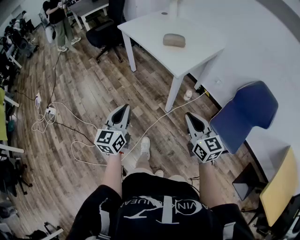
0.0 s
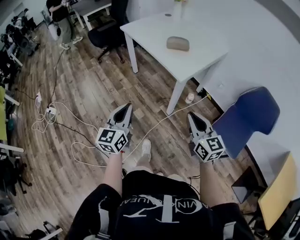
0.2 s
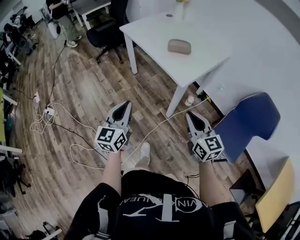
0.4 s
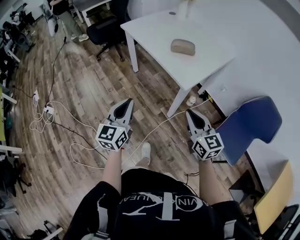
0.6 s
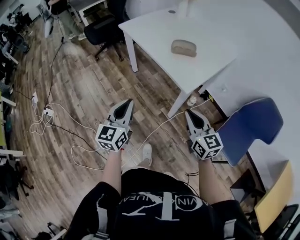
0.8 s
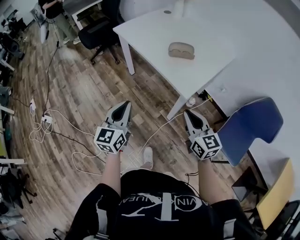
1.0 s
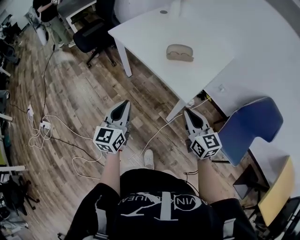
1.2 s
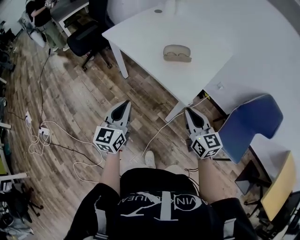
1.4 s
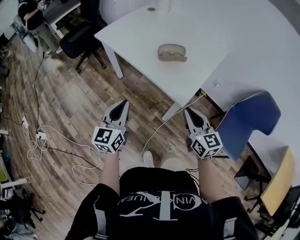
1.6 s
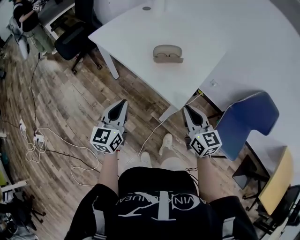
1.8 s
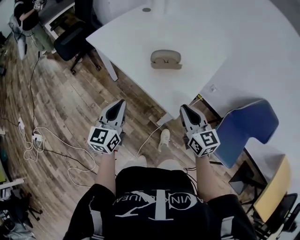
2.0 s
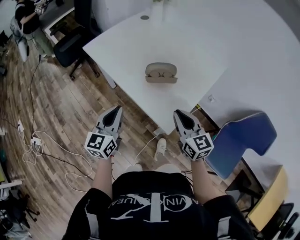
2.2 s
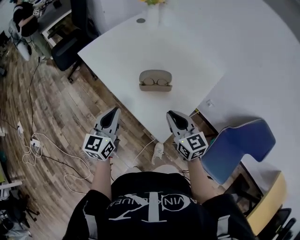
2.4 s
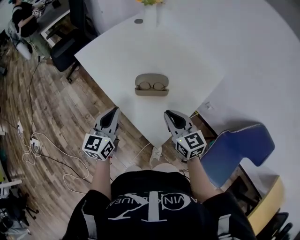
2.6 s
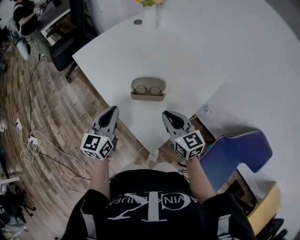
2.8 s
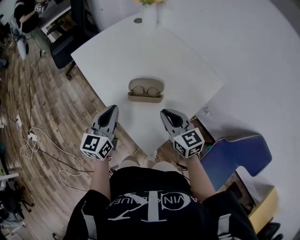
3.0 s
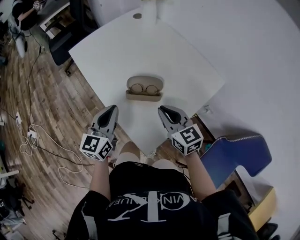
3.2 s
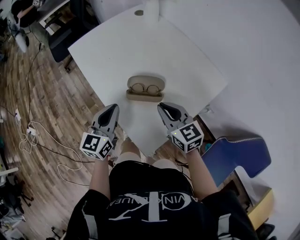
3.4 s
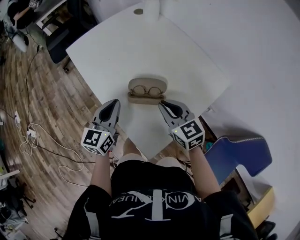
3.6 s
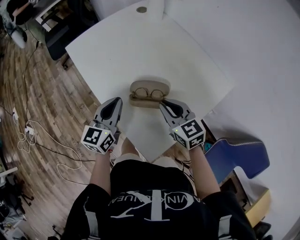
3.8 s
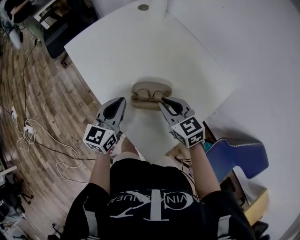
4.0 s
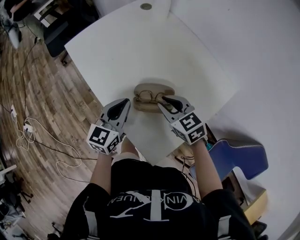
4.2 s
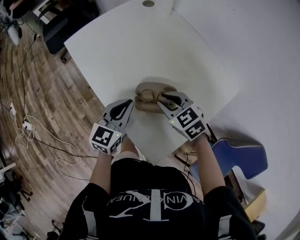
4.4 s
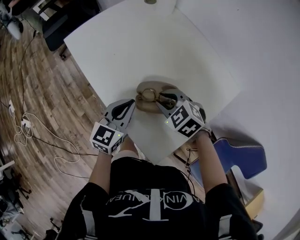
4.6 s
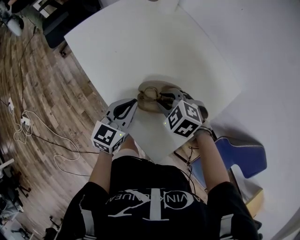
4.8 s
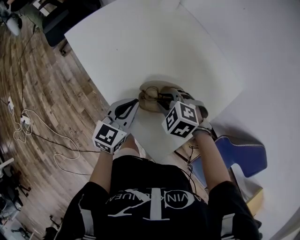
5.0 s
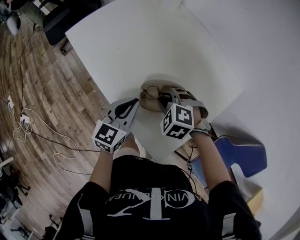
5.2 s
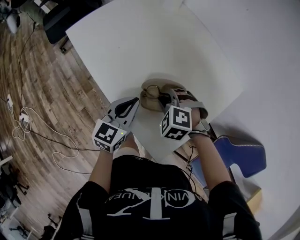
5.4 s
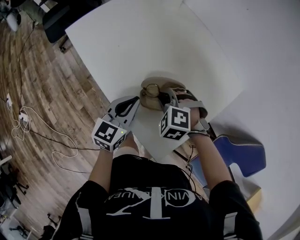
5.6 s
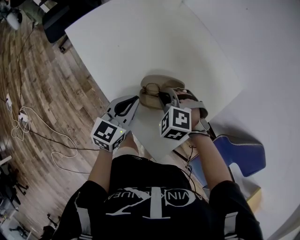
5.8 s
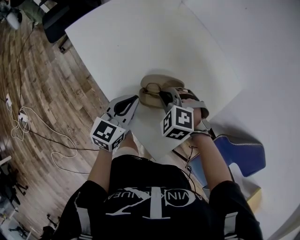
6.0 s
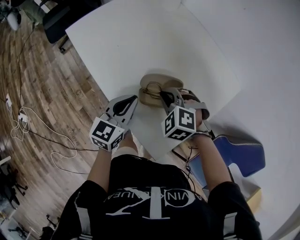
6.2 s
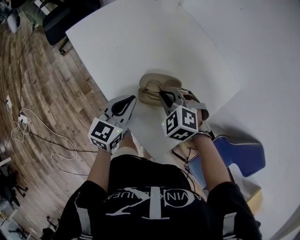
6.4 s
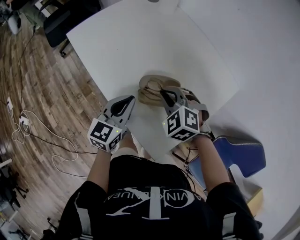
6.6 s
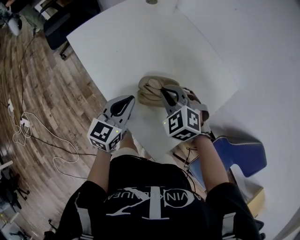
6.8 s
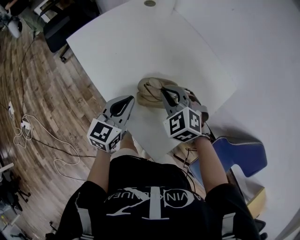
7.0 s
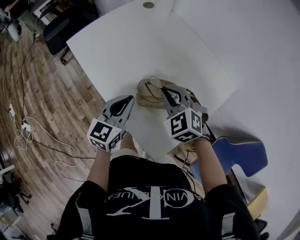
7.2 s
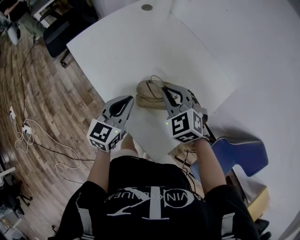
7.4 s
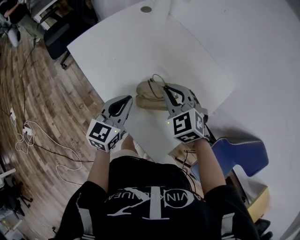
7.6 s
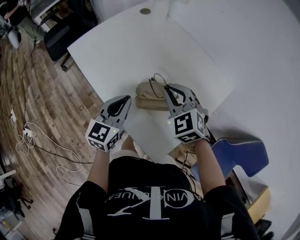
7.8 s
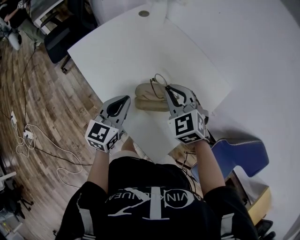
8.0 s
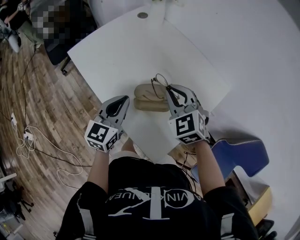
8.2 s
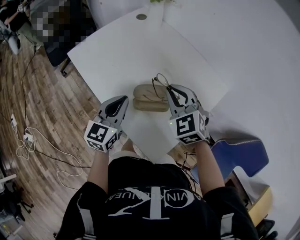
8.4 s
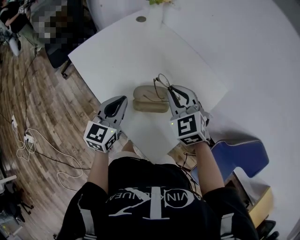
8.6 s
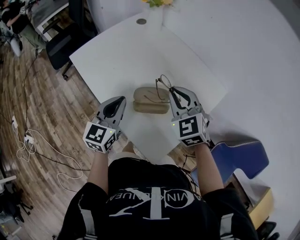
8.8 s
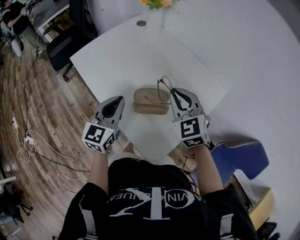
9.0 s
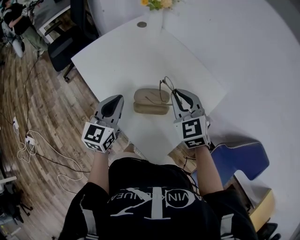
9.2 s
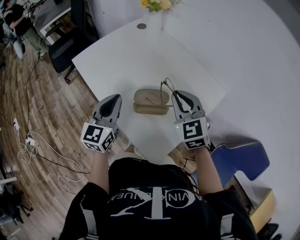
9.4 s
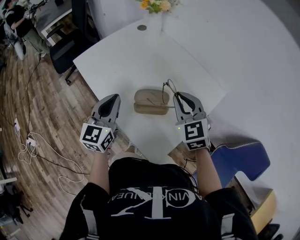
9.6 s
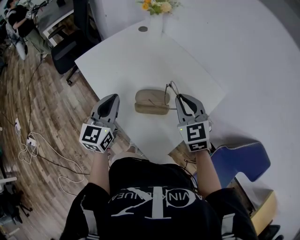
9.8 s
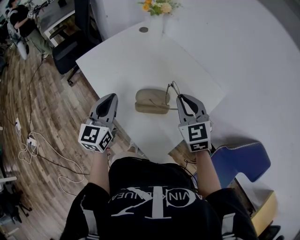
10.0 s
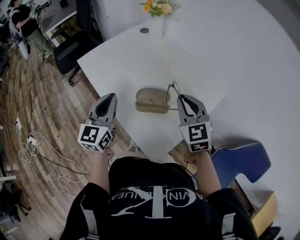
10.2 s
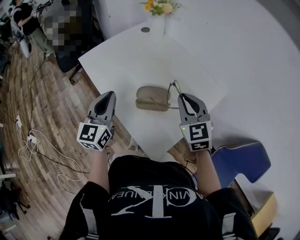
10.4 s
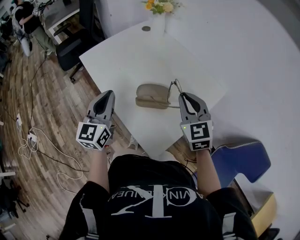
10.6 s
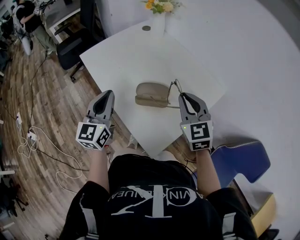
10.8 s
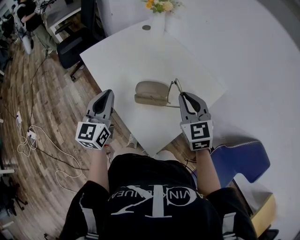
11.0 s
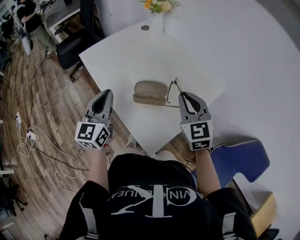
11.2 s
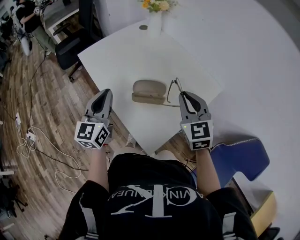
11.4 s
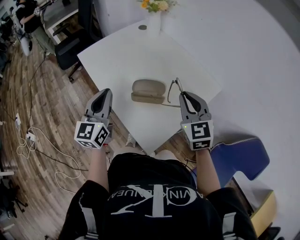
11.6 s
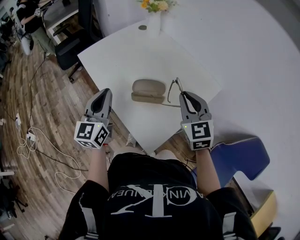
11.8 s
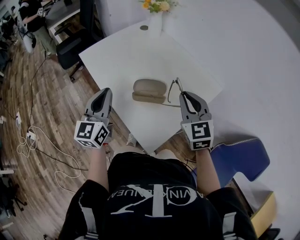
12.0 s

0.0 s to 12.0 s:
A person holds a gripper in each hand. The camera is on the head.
0.0 to 1.6 s: Both grippers travel together forward, roughly 30 cm.
1.6 to 3.0 s: The right gripper travels forward by about 25 cm; the left gripper travels forward and to the right by about 25 cm.
3.0 to 4.4 s: The right gripper travels forward, to the left and downward by approximately 15 cm, and turns by roughly 30 degrees. Meanwhile the left gripper travels forward and downward by roughly 10 cm.
4.4 to 6.0 s: The right gripper swivels approximately 40 degrees.
6.0 to 7.6 s: The right gripper travels upward by about 10 cm, and swivels approximately 30 degrees, while the left gripper goes some 5 cm upward.
7.6 to 9.0 s: The right gripper heads upward, covering approximately 5 cm.
9.0 to 10.4 s: The right gripper shifts by some 5 cm. The left gripper travels upward by some 5 cm.
10.4 to 12.0 s: There are only small adjustments of the grippers.

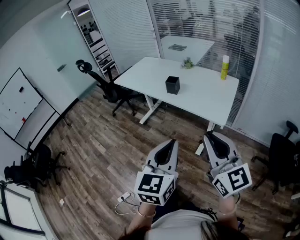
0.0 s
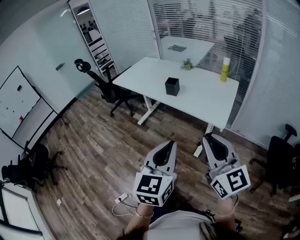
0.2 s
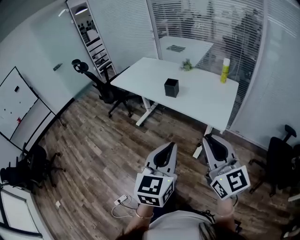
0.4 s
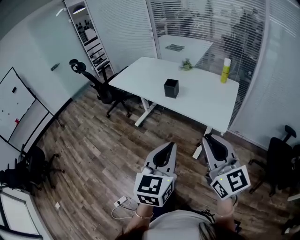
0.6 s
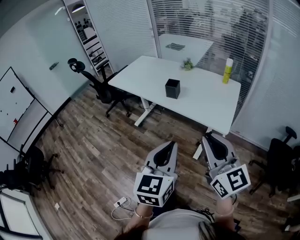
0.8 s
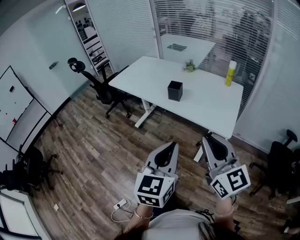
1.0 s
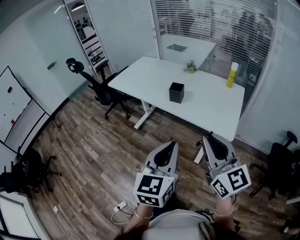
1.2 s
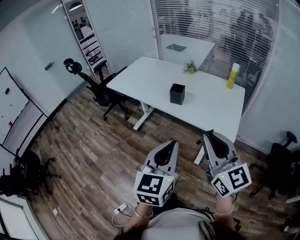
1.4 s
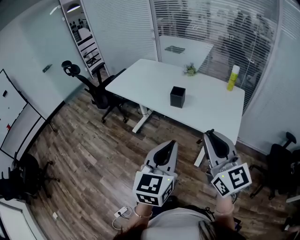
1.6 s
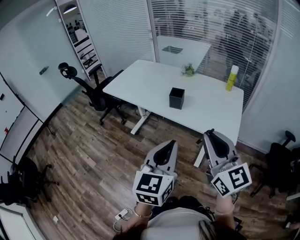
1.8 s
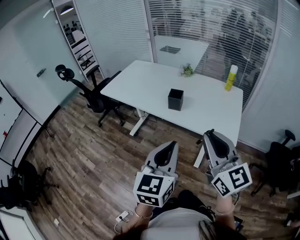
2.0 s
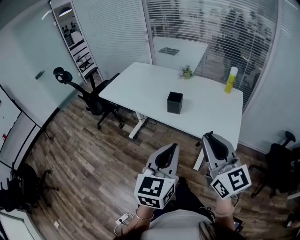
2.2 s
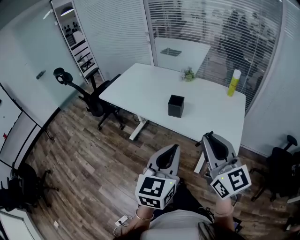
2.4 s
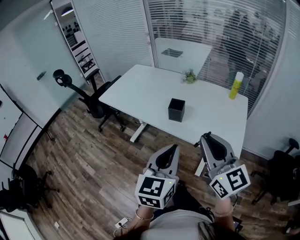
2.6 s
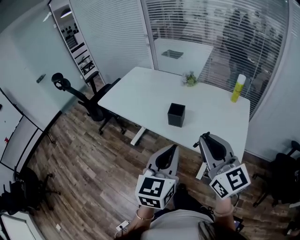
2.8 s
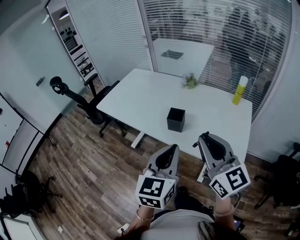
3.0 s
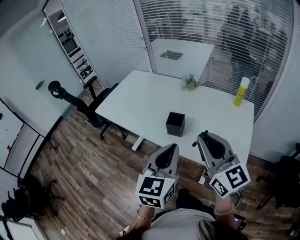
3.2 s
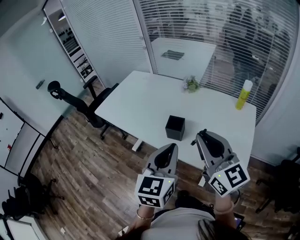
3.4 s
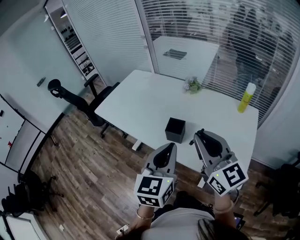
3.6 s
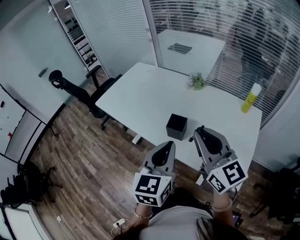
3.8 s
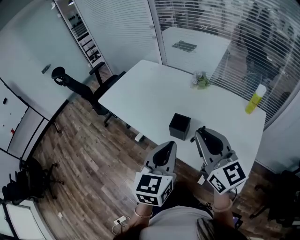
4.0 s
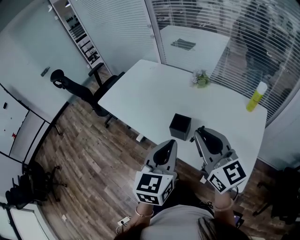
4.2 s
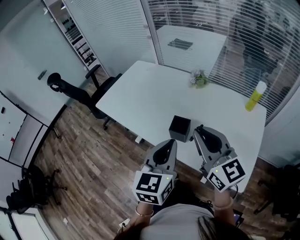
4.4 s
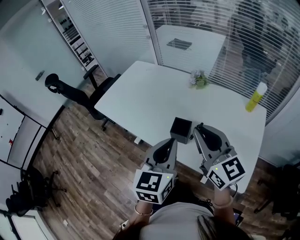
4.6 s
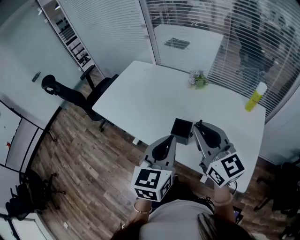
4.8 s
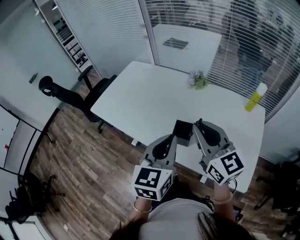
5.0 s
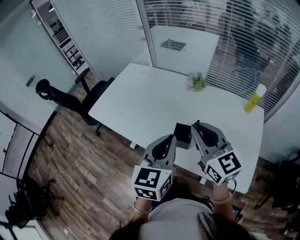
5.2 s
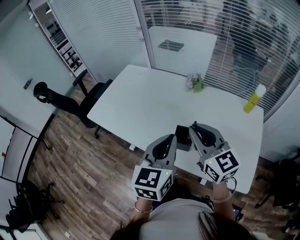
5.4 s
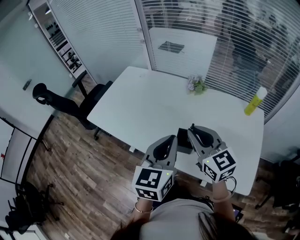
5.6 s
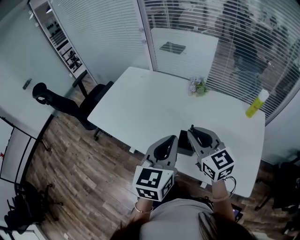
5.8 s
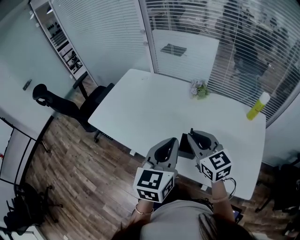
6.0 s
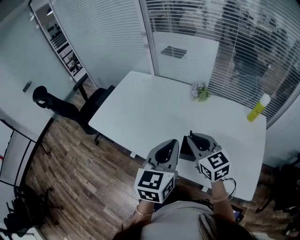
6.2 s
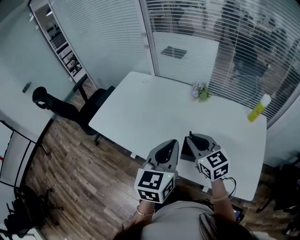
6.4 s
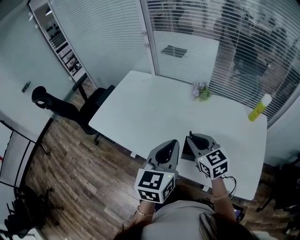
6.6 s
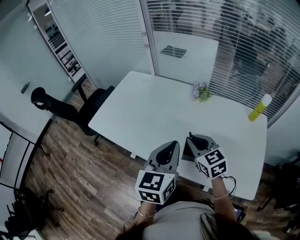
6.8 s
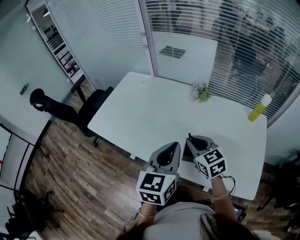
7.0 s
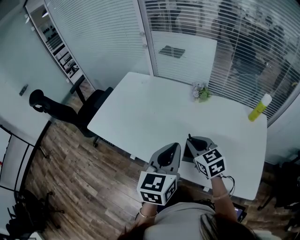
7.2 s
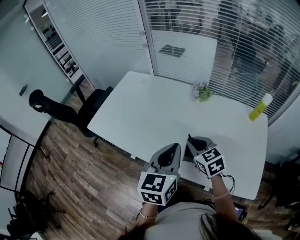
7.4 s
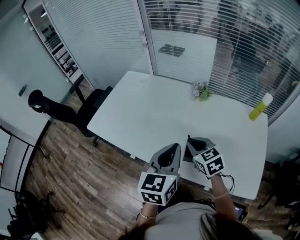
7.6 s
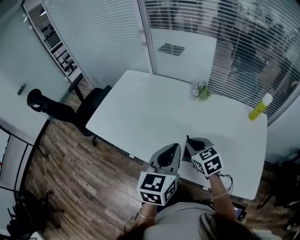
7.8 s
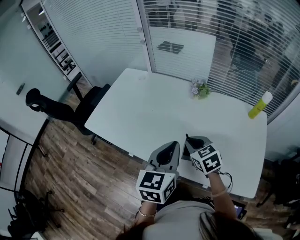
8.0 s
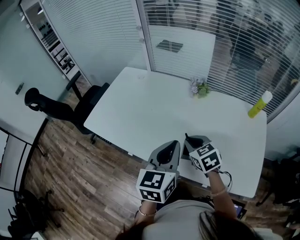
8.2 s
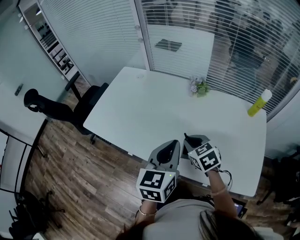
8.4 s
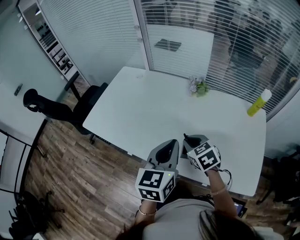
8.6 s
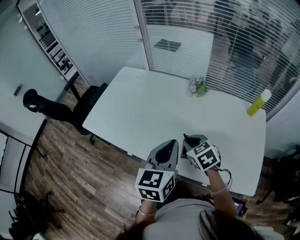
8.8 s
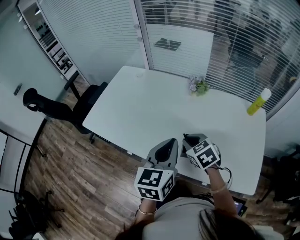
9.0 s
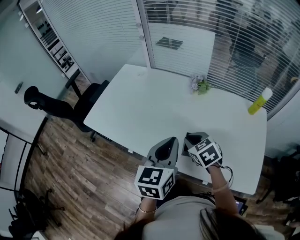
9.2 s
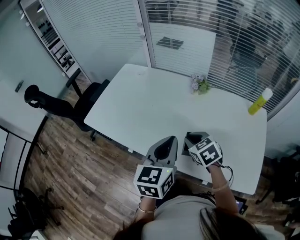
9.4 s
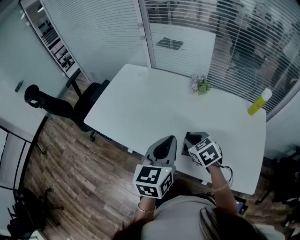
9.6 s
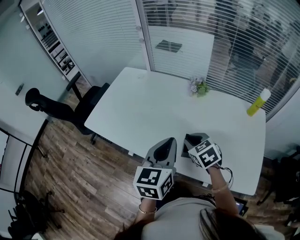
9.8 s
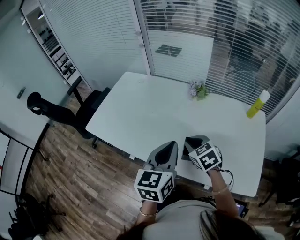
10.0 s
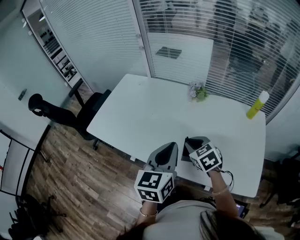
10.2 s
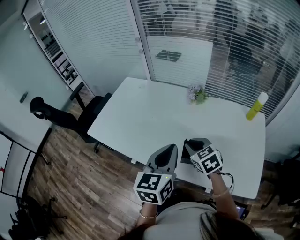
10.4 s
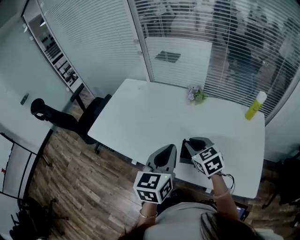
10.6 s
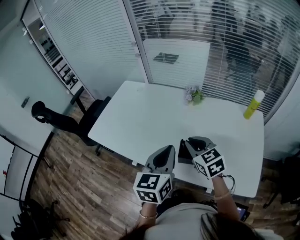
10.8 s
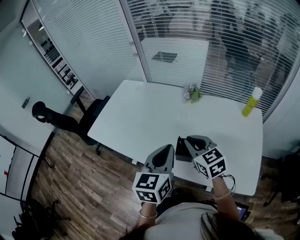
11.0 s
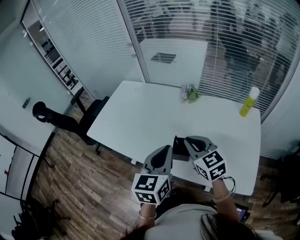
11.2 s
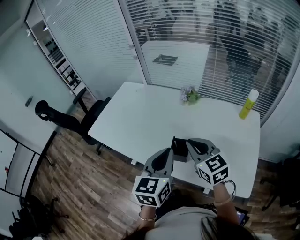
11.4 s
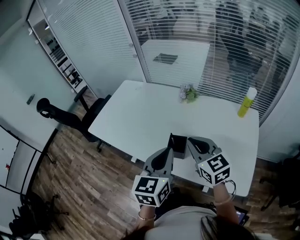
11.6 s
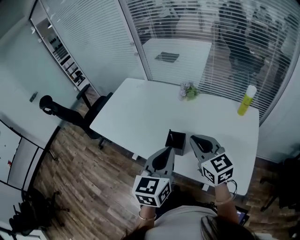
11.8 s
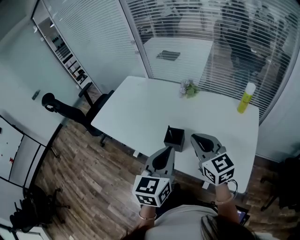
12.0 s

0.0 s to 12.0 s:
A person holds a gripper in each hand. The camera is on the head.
0.0 to 1.6 s: Both grippers travel together forward and to the left, roughly 20 cm.
1.6 to 3.0 s: Both grippers travel together forward, some 20 cm.
3.0 to 4.4 s: The two grippers go some 15 cm forward.
4.4 to 6.0 s: The right gripper moves forward, downward and to the left, roughly 15 cm. Meanwhile the left gripper travels forward by approximately 10 cm.
6.0 to 7.6 s: The right gripper is displaced downward by about 10 cm, and turns by roughly 20 degrees.
7.6 to 10.4 s: The grippers stay close to where they were, moving slightly.
10.4 to 12.0 s: The left gripper shifts about 15 cm backward and to the right, while the right gripper goes about 20 cm upward, backward and to the right, and changes its angle by approximately 30 degrees.
